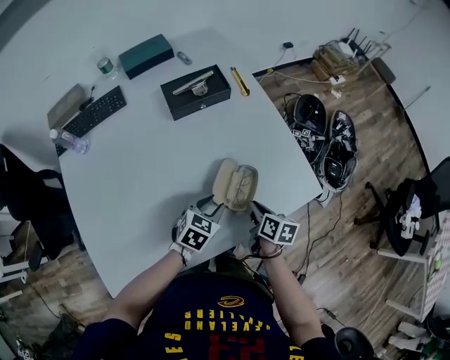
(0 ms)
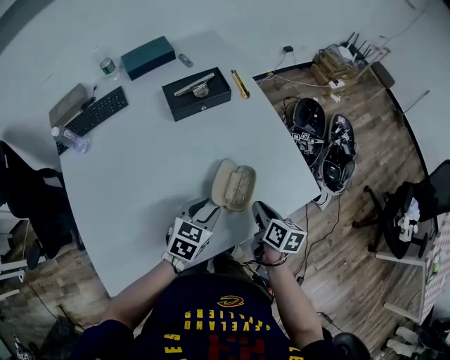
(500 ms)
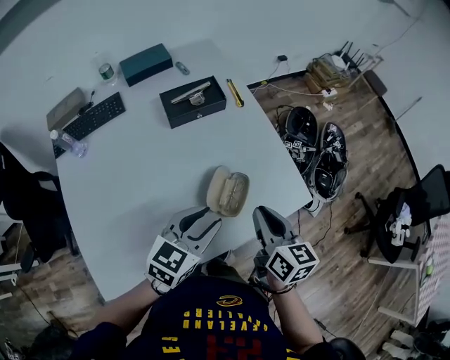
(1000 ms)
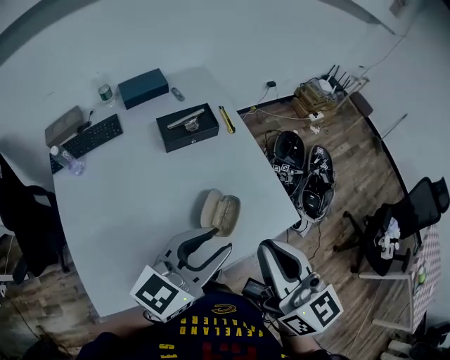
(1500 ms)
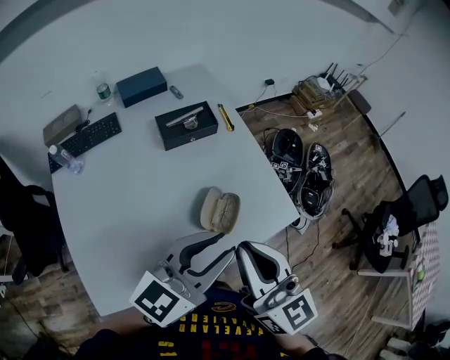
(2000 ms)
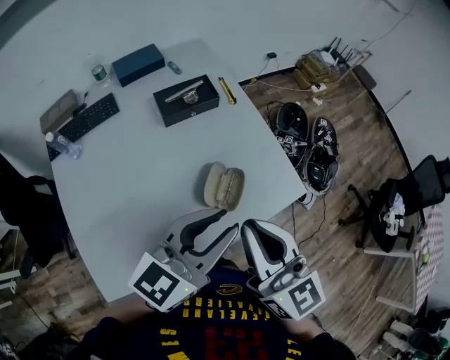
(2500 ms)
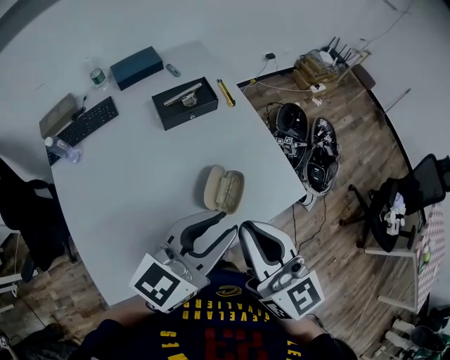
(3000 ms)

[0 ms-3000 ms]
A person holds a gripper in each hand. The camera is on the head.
0 ms to 1500 ms: Both grippers move upward, about 35 cm. The right gripper angles its fingers upward, by roughly 40 degrees, while the left gripper tilts its fingers roughly 40 degrees upward.
1500 ms to 3000 ms: There are only small adjustments of the grippers.

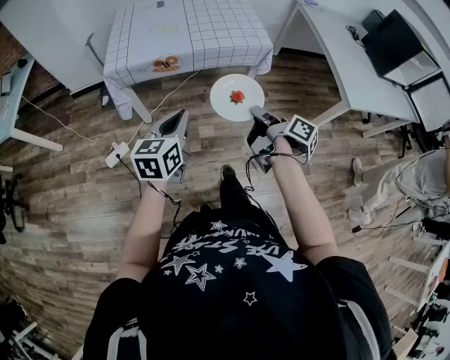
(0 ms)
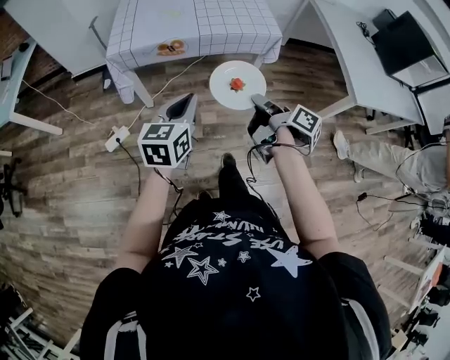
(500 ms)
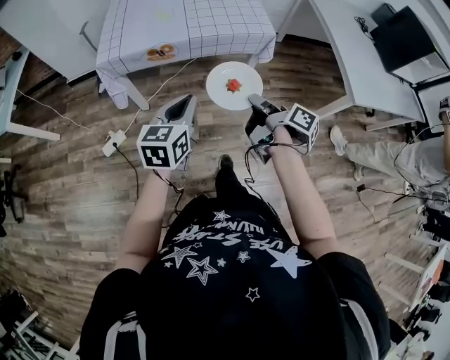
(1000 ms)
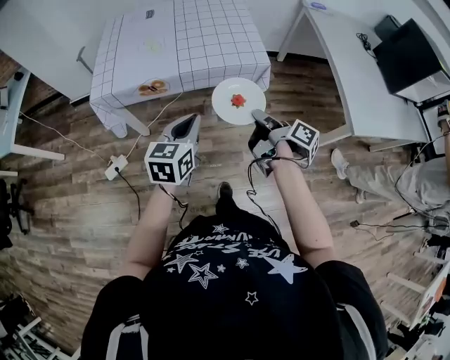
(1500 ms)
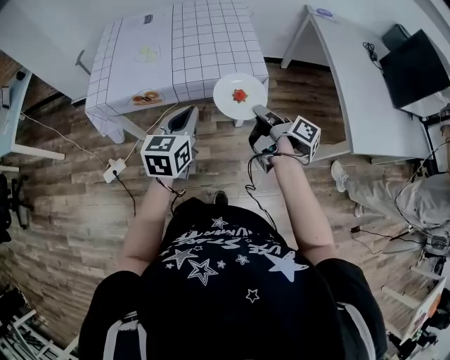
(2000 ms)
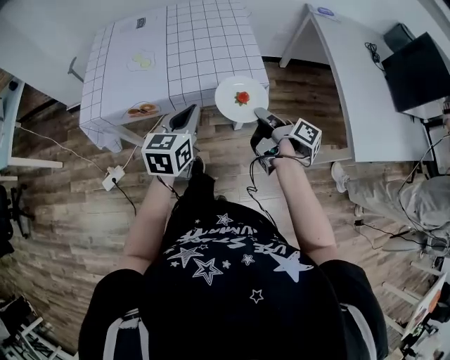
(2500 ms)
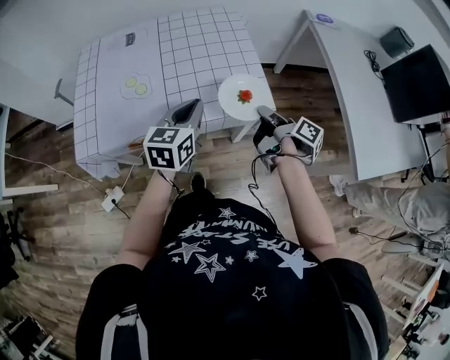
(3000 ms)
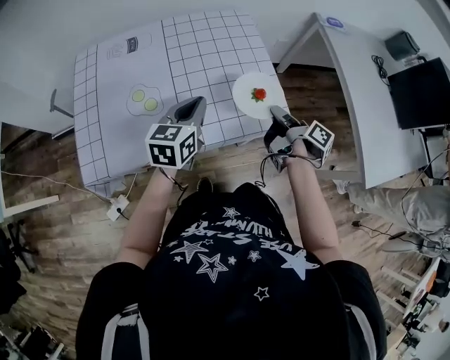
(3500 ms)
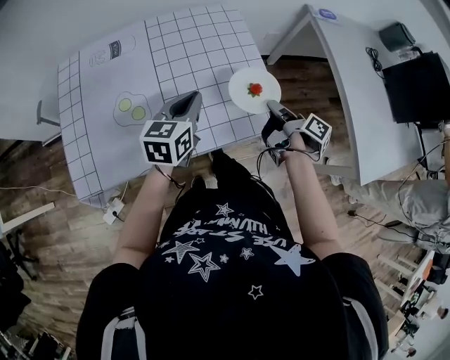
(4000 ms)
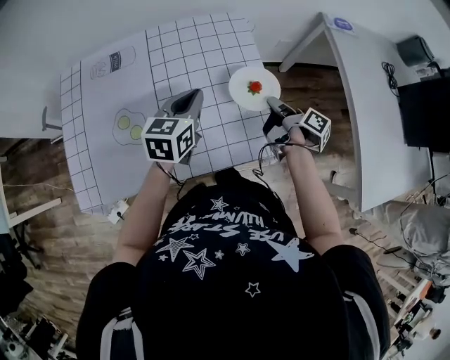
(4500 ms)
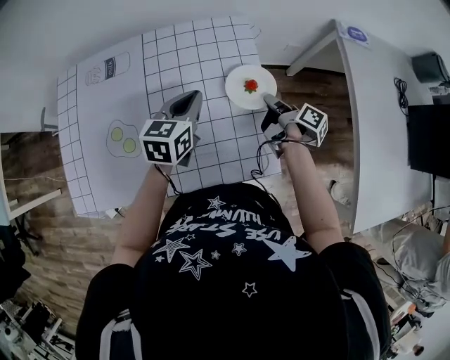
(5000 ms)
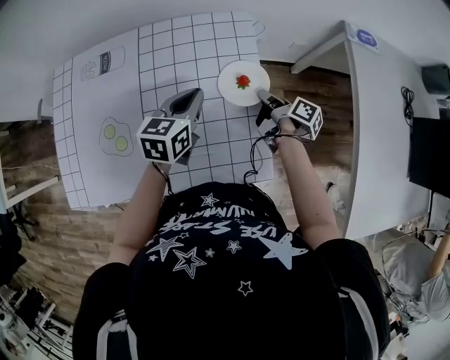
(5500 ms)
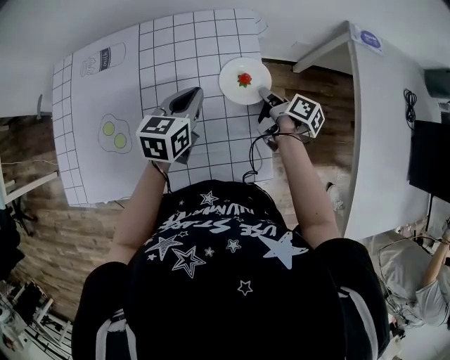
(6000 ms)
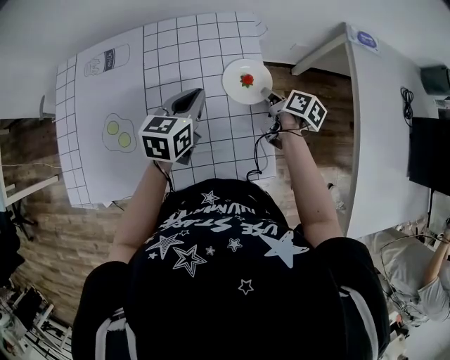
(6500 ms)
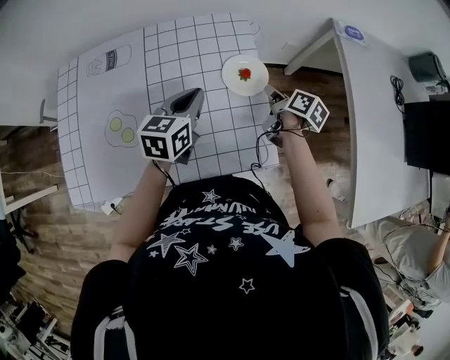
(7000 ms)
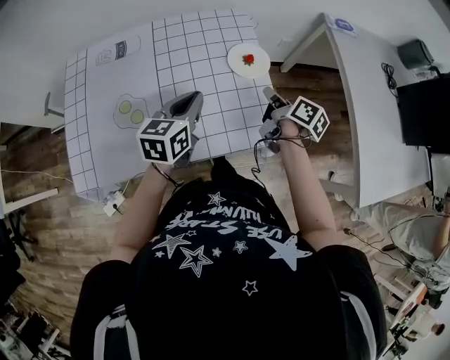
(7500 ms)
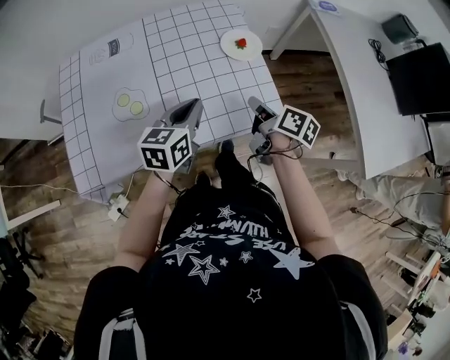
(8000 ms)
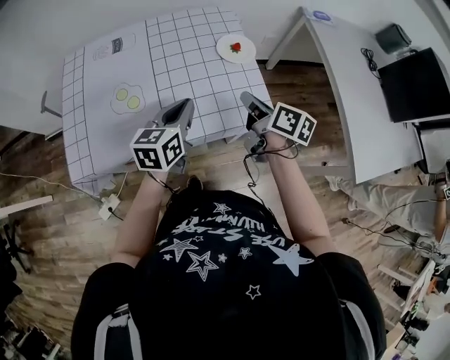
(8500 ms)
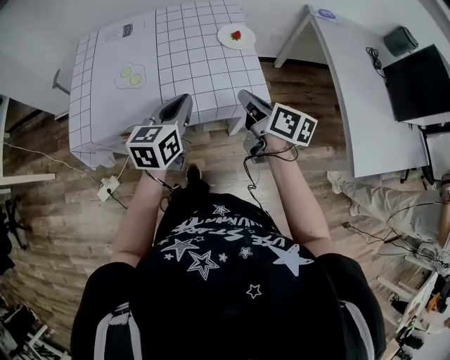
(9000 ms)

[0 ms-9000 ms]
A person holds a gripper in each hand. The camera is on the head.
0 ms to 2000 ms: The left gripper moves roughly 25 cm.
2000 ms to 4500 ms: The left gripper moves some 40 cm.
7000 ms to 9000 ms: The left gripper moves about 25 cm.

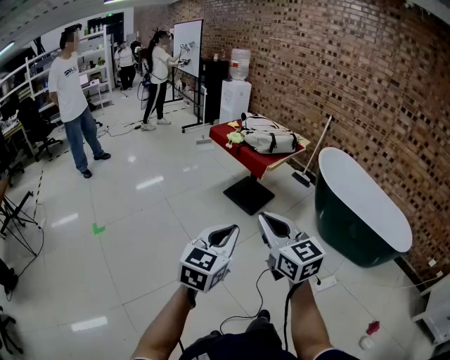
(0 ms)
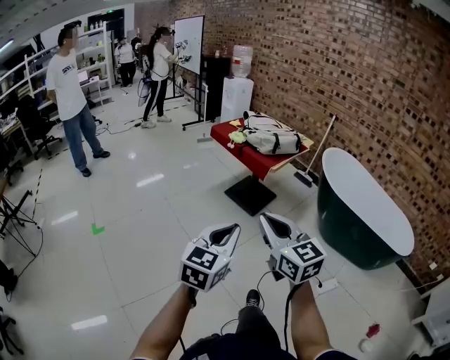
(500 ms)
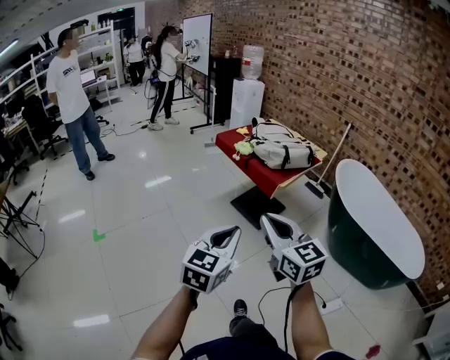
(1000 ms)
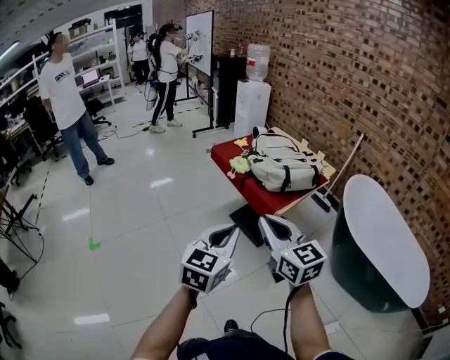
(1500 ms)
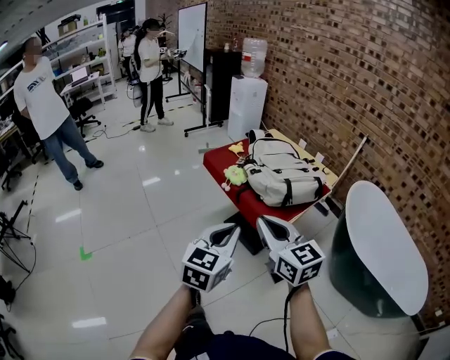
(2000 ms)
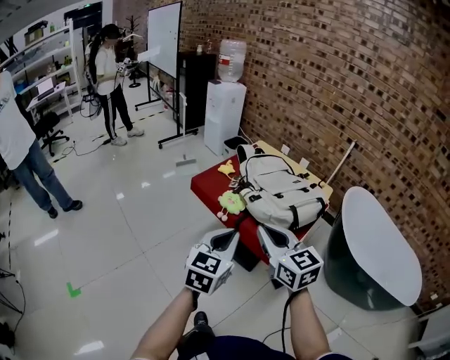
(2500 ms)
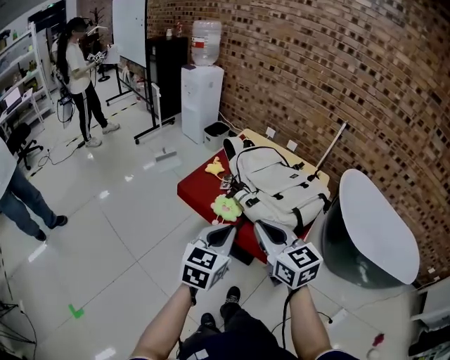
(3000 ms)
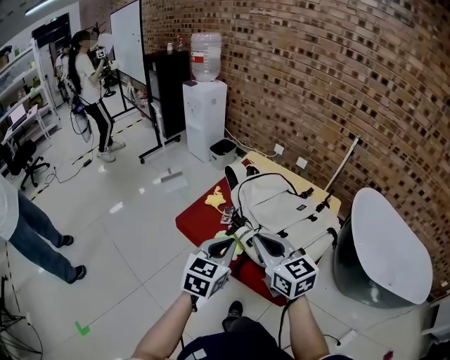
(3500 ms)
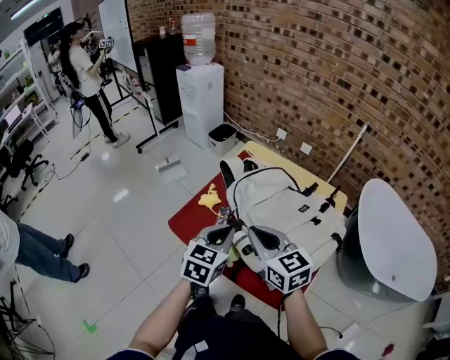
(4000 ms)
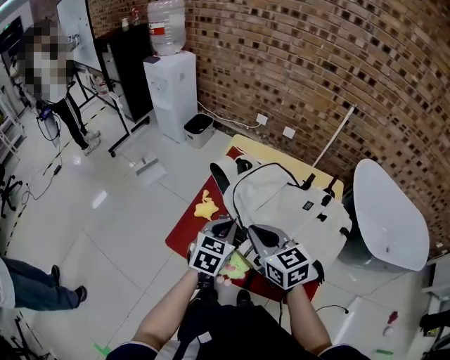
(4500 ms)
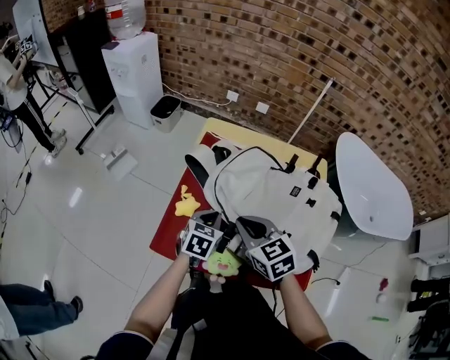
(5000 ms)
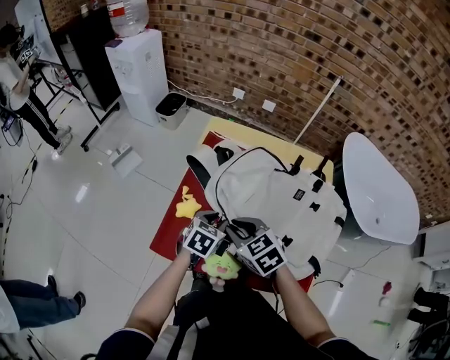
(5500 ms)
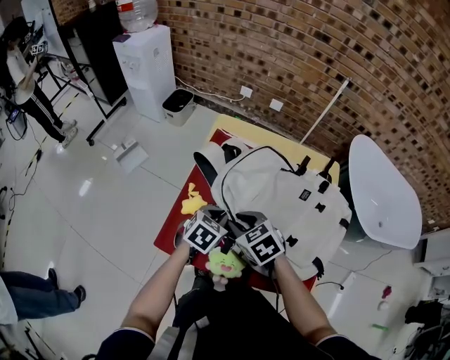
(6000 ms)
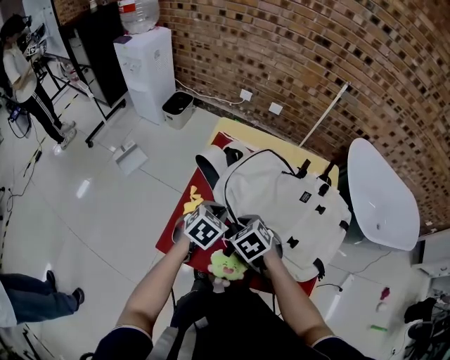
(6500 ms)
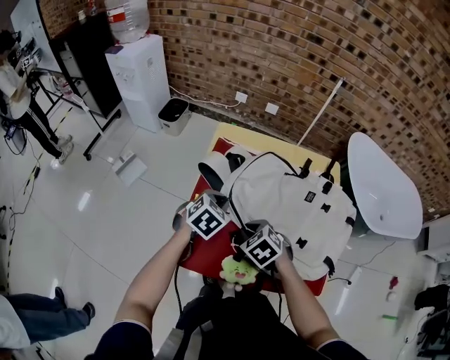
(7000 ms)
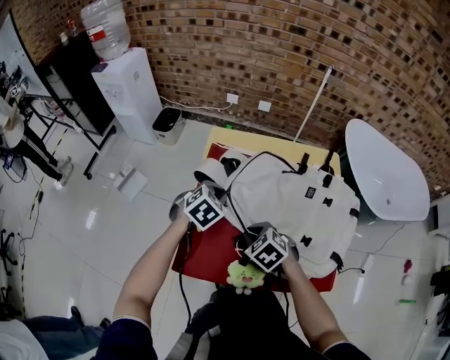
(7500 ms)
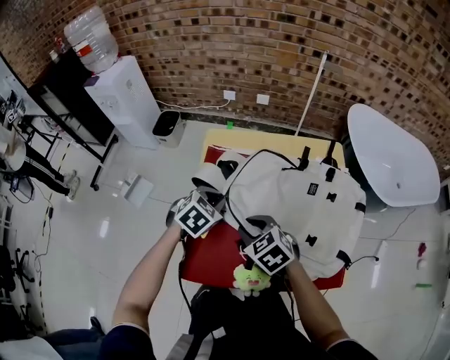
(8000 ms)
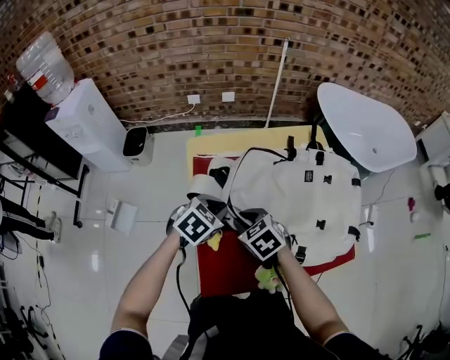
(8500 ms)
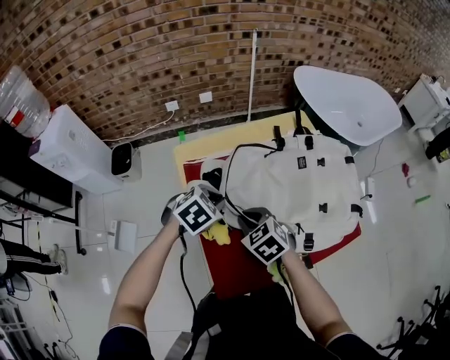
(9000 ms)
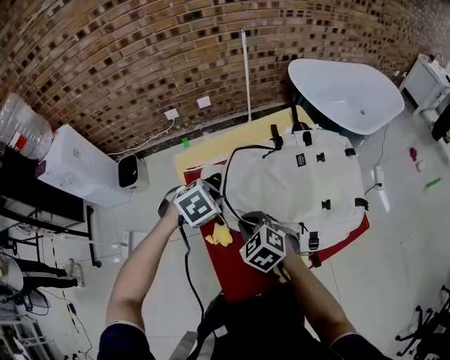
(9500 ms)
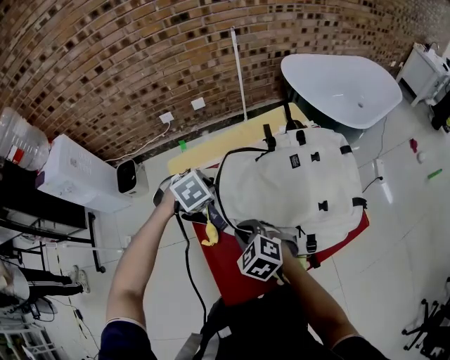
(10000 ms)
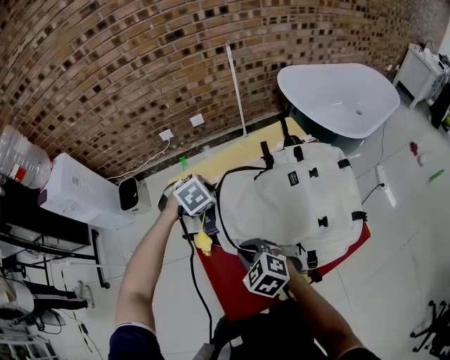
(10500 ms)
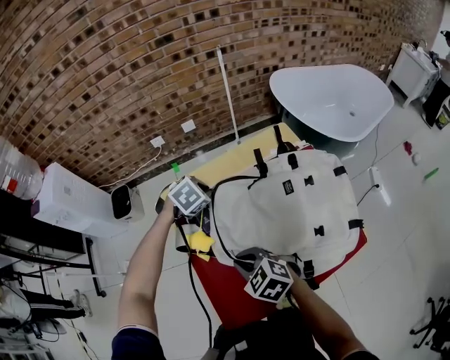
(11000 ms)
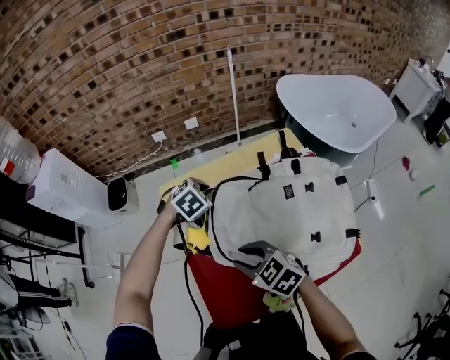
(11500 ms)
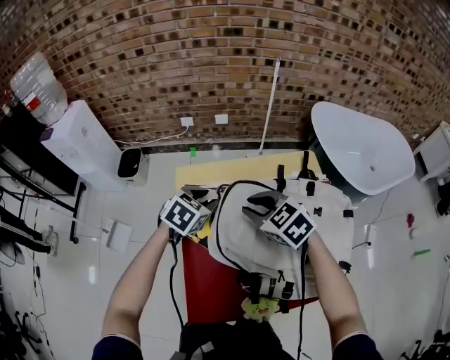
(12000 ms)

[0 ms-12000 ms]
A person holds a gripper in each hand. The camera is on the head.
0 ms to 2000 ms: The pair of grippers is taken forward, roughly 50 cm.
2000 ms to 4000 ms: The pair of grippers is taken forward, about 40 cm. The left gripper rotates approximately 20 degrees.
4000 ms to 6000 ms: Both grippers travel together downward and forward, about 20 cm. The left gripper changes its angle by approximately 40 degrees, and opens and closes again. The right gripper tips its fingers downward by approximately 30 degrees, and opens its fingers.
6000 ms to 8000 ms: The left gripper travels forward by about 10 cm, and changes its angle by roughly 20 degrees.
8000 ms to 10000 ms: The left gripper shifts by some 10 cm, and rotates approximately 40 degrees. Meanwhile the right gripper ends up roughly 5 cm from where it was.
10000 ms to 12000 ms: The right gripper goes roughly 20 cm forward and upward. The left gripper travels forward and back again, about 10 cm each way, swivels some 40 degrees, and opens.

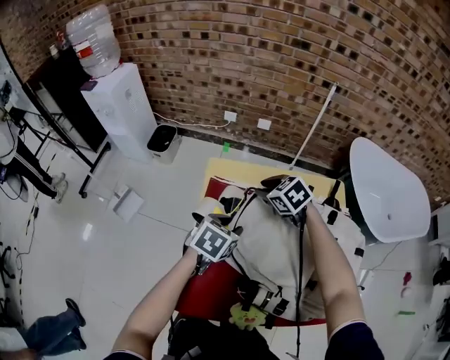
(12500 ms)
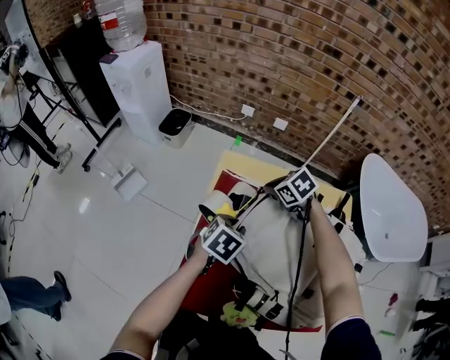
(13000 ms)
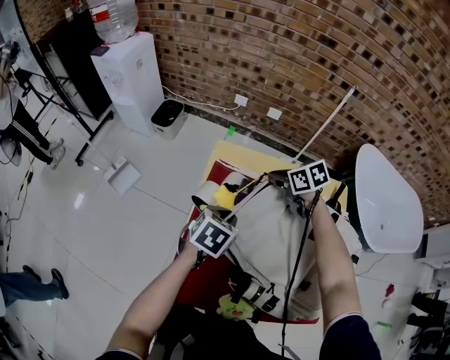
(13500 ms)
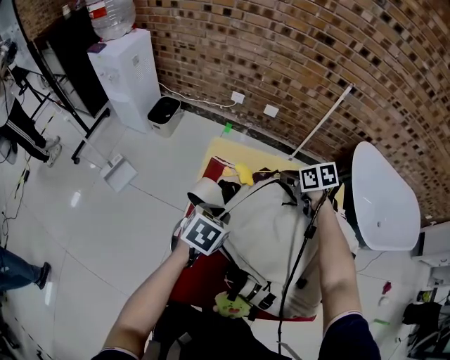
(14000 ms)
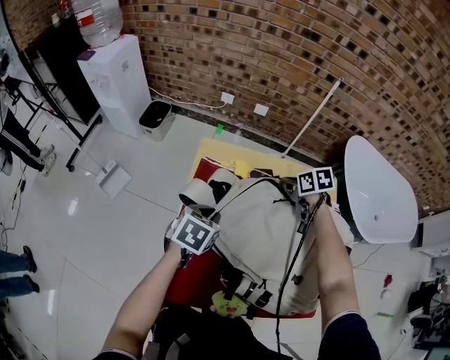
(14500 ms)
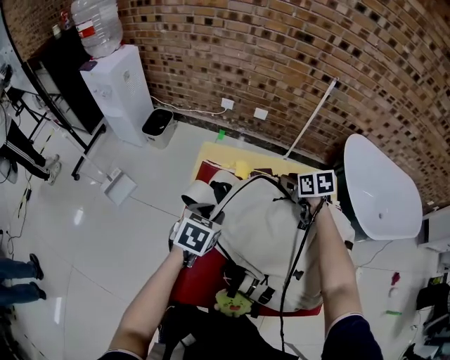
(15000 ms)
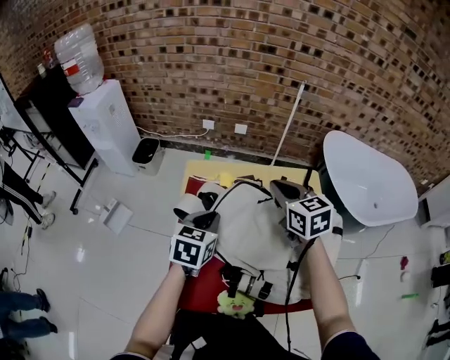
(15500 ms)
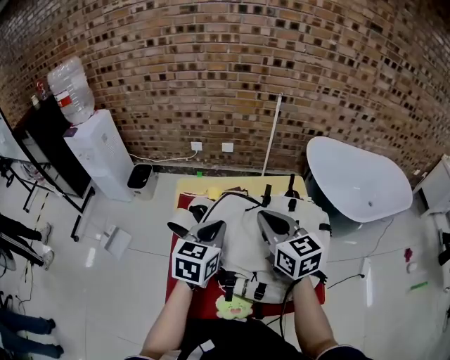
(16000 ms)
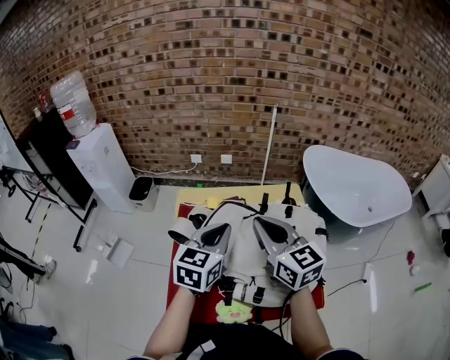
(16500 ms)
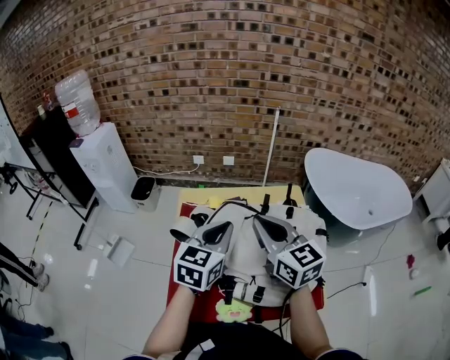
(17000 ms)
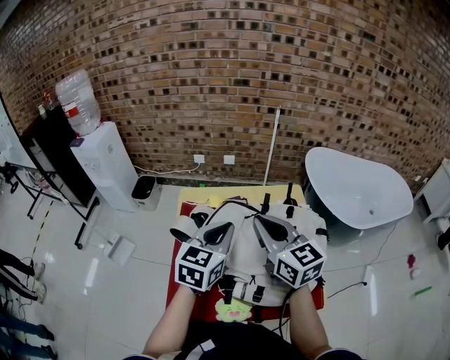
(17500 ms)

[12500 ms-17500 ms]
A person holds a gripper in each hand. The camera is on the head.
12500 ms to 15000 ms: The right gripper goes some 15 cm to the right, changes its angle by about 30 degrees, and closes, then opens again.
15000 ms to 17500 ms: The left gripper goes some 20 cm upward and to the right, turns by some 30 degrees, and closes. The right gripper moves upward and backward, some 35 cm, points its fingers approximately 40 degrees further upward, and closes up.
